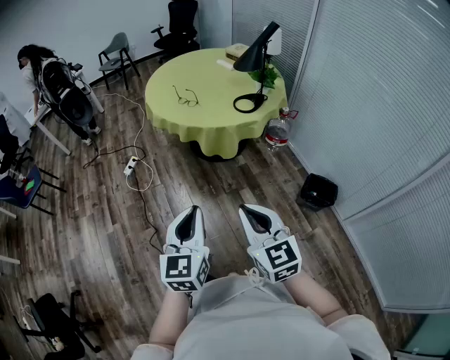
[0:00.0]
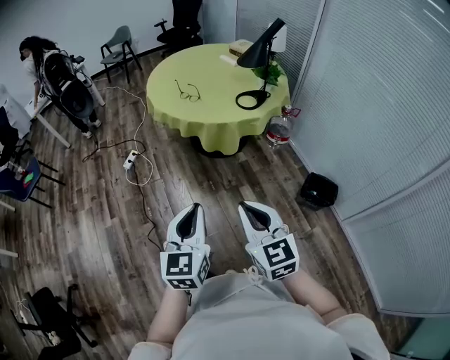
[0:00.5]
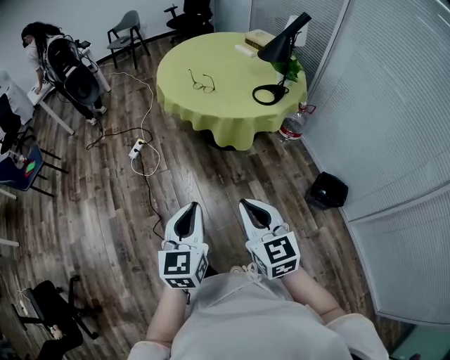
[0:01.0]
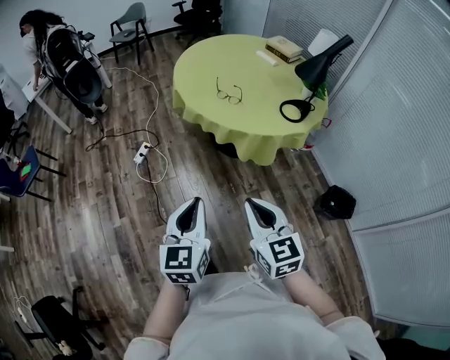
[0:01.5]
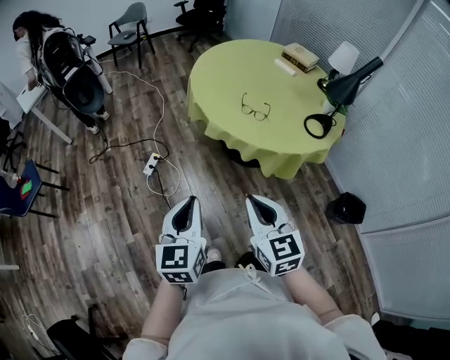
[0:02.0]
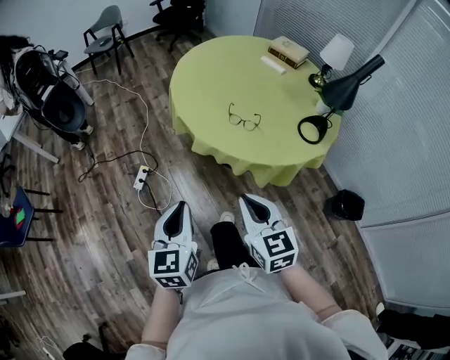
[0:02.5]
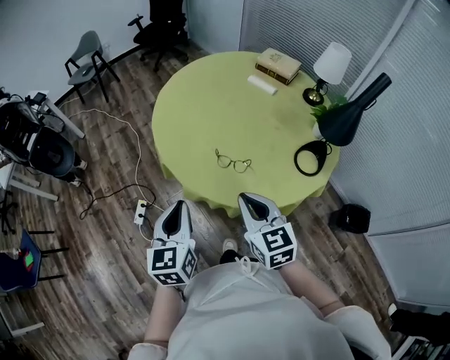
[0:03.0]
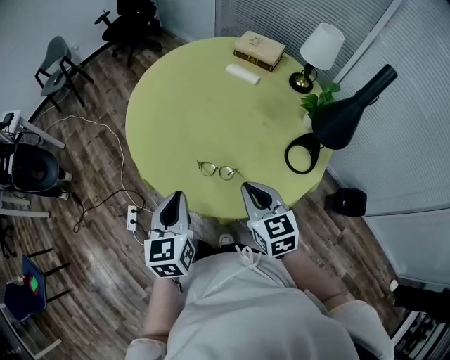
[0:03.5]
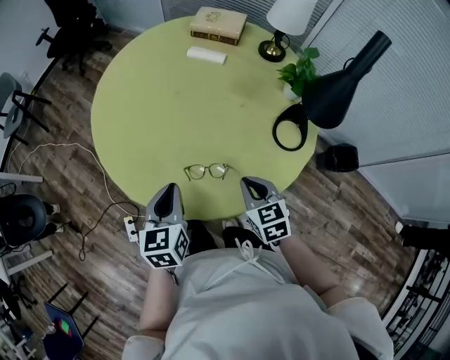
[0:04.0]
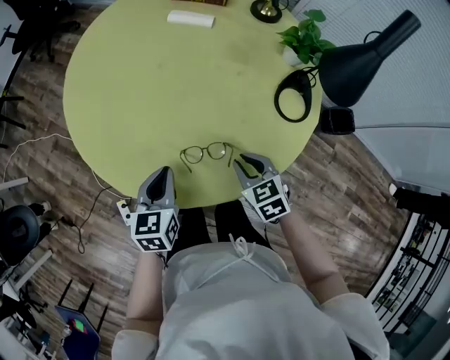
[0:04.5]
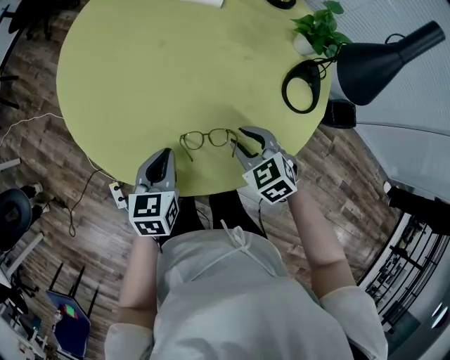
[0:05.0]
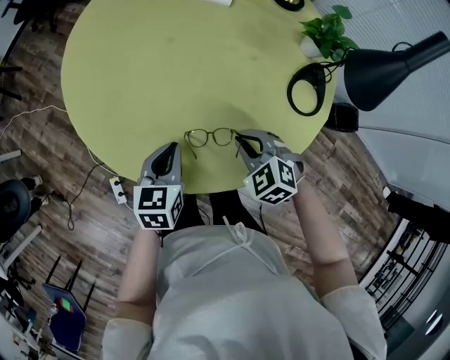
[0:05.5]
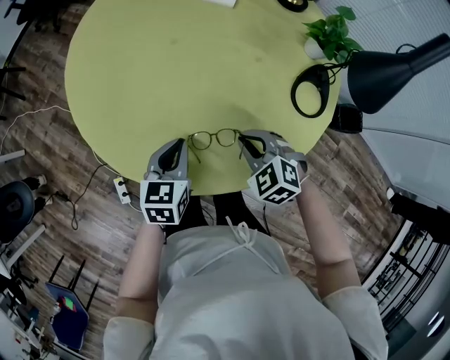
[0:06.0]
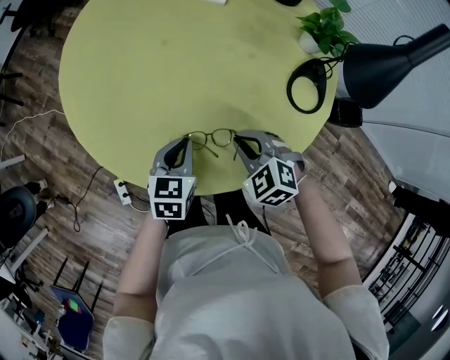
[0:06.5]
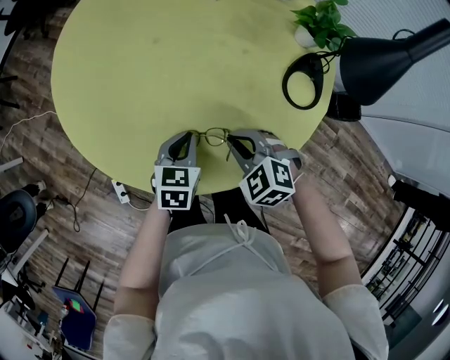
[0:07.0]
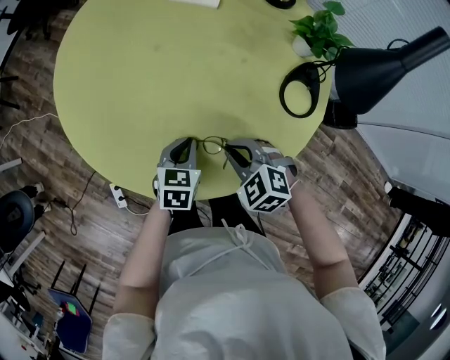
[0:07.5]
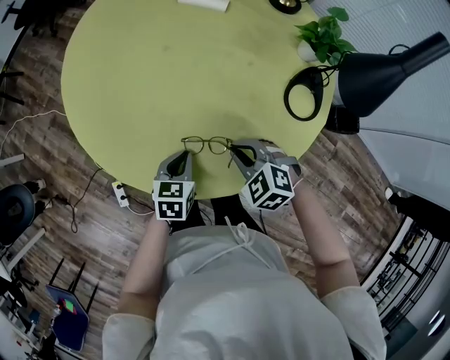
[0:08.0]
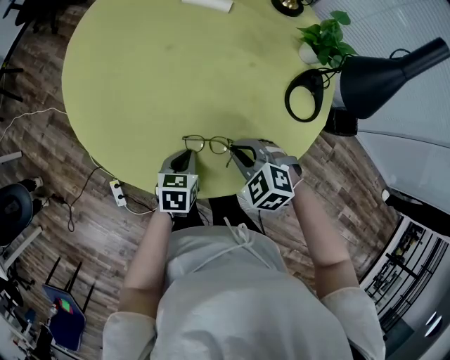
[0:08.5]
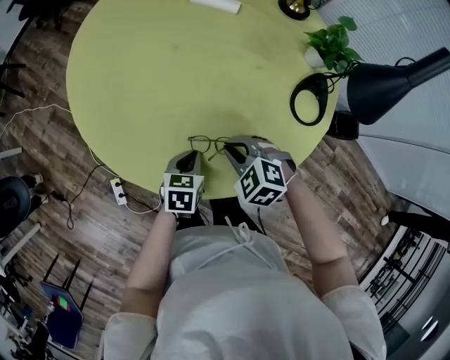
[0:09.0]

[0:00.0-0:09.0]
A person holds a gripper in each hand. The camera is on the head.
0:00.0 to 0:02.0: The pair of grippers is taken forward and to the left, approximately 50 cm.
0:02.0 to 0:04.5: The two grippers travel together, some 60 cm. The right gripper tips its fingers downward by roughly 30 degrees; the left gripper turns by roughly 40 degrees.
0:04.5 to 0:07.0: The left gripper moves downward and to the right, about 10 cm. The right gripper swivels roughly 40 degrees.
0:07.0 to 0:09.0: The left gripper shifts by about 5 cm.

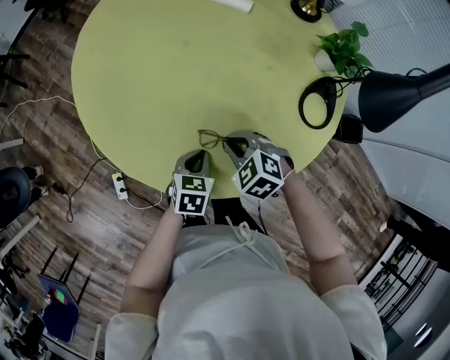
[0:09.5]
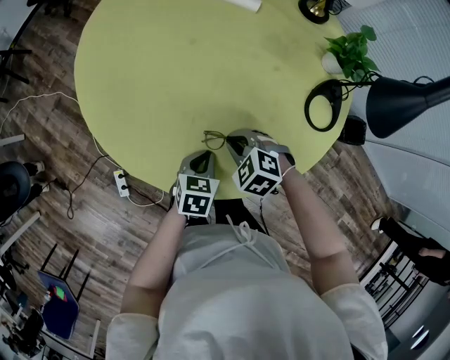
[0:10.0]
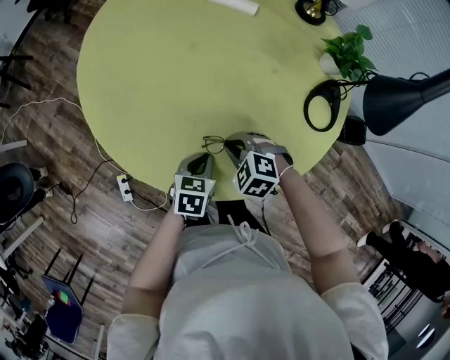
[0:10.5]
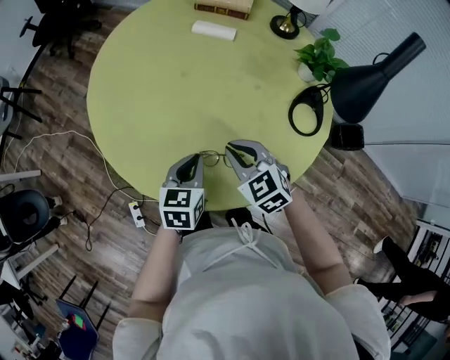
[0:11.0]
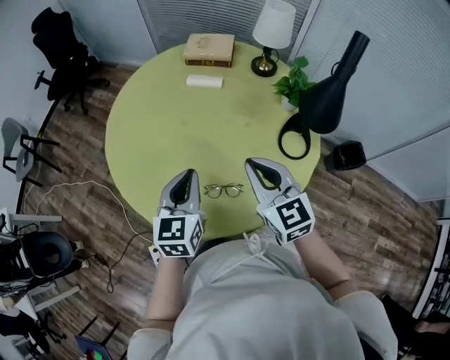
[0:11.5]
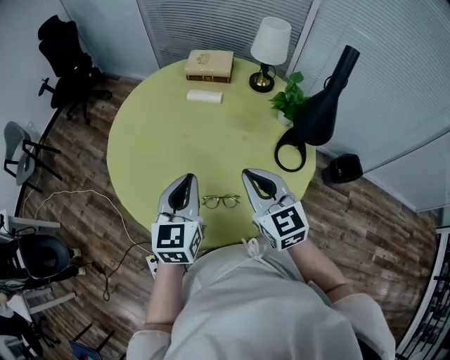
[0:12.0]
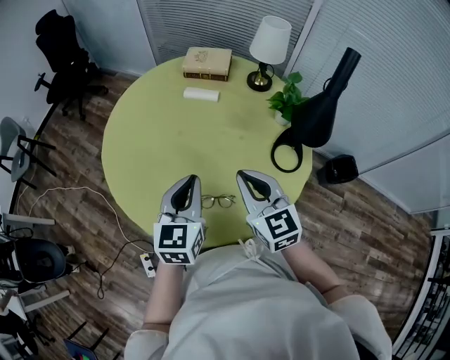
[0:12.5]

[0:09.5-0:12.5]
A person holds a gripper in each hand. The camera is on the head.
0:09.5 to 0:11.0: Both grippers move upward, approximately 10 cm. The right gripper changes its angle by approximately 30 degrees.
0:11.0 to 0:12.5: The two grippers go approximately 20 cm upward. The right gripper changes its angle by roughly 30 degrees. The left gripper swivels about 20 degrees.

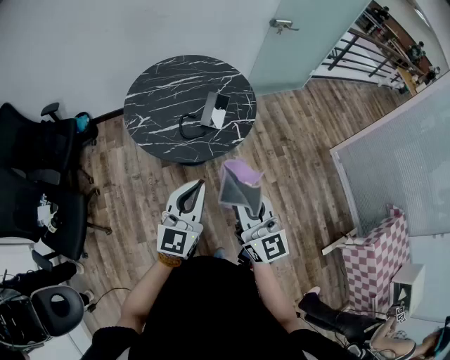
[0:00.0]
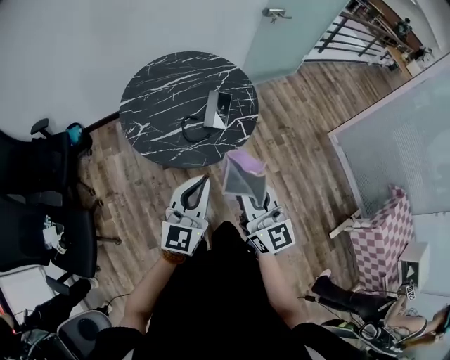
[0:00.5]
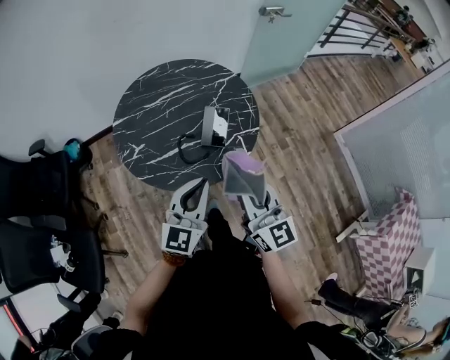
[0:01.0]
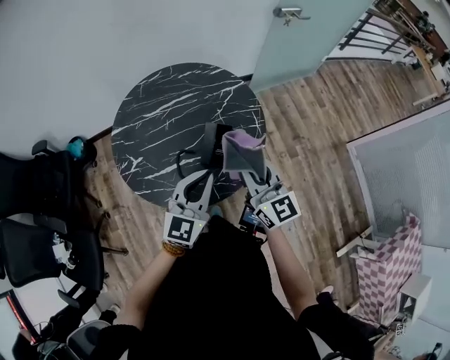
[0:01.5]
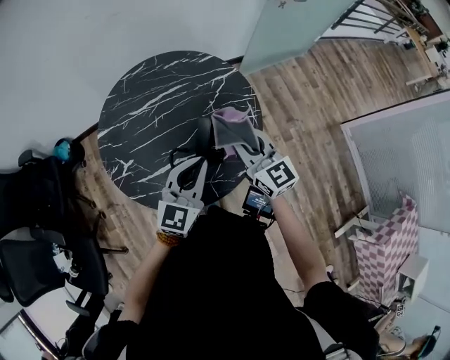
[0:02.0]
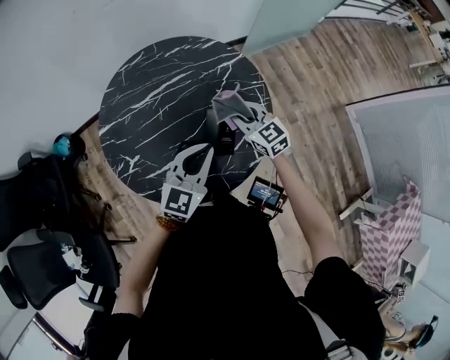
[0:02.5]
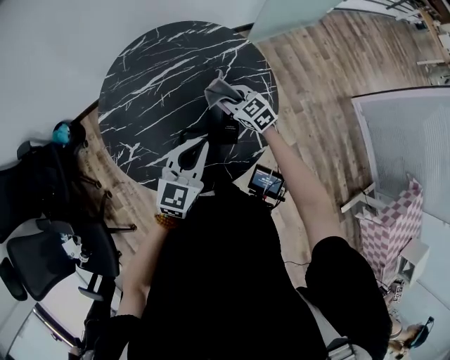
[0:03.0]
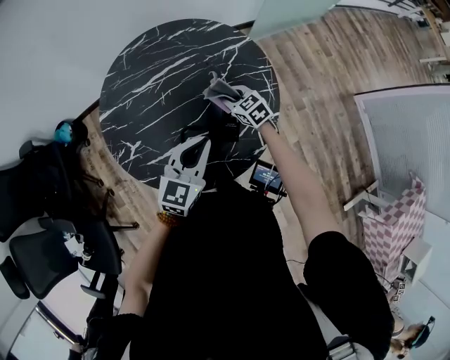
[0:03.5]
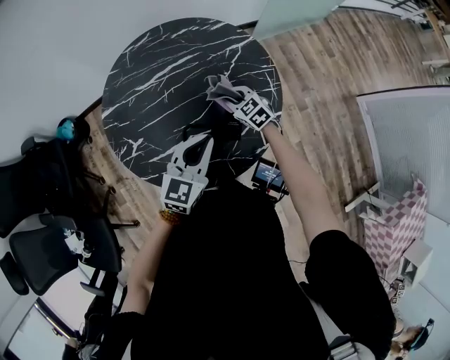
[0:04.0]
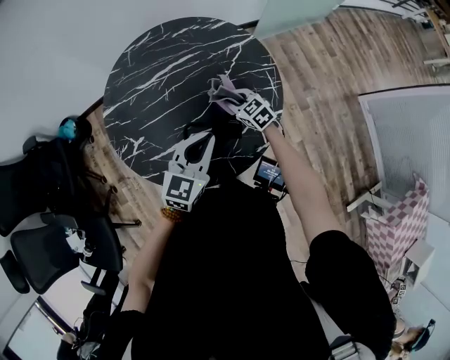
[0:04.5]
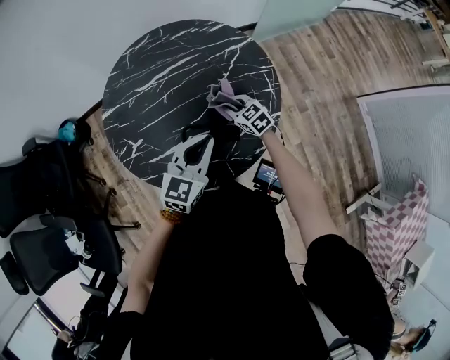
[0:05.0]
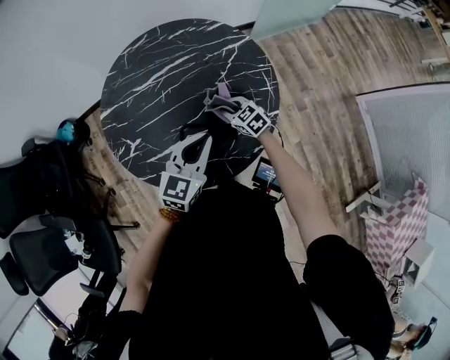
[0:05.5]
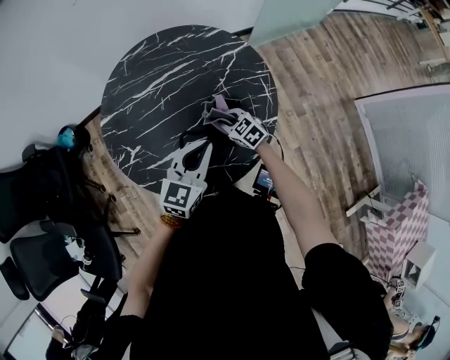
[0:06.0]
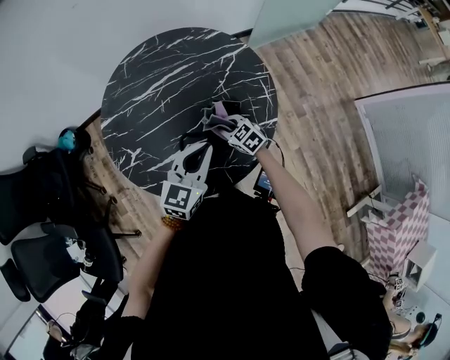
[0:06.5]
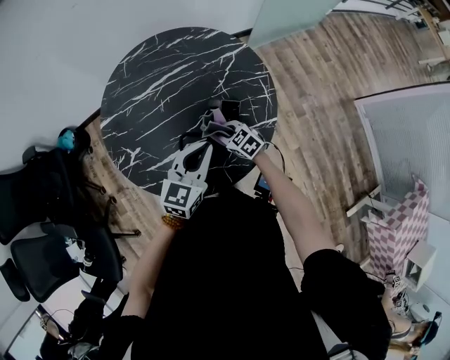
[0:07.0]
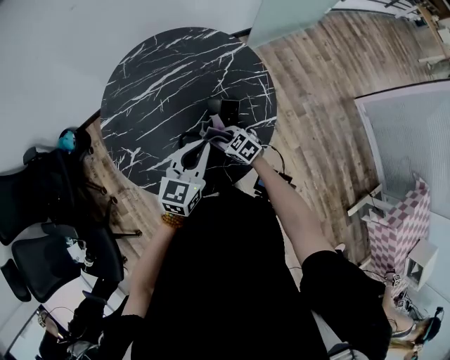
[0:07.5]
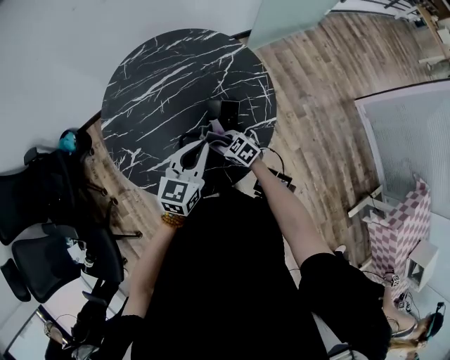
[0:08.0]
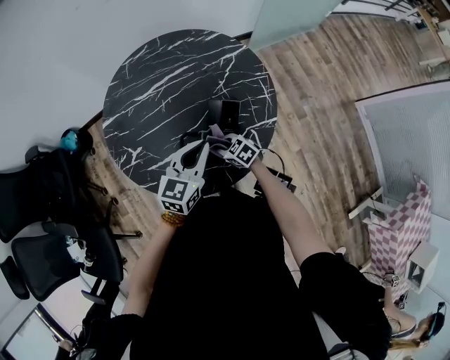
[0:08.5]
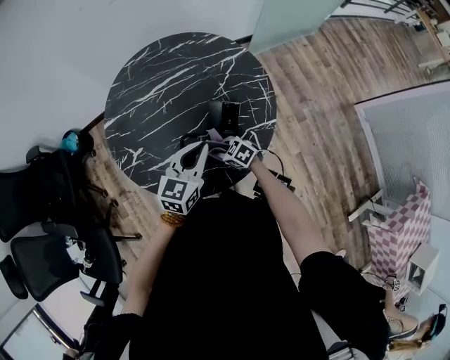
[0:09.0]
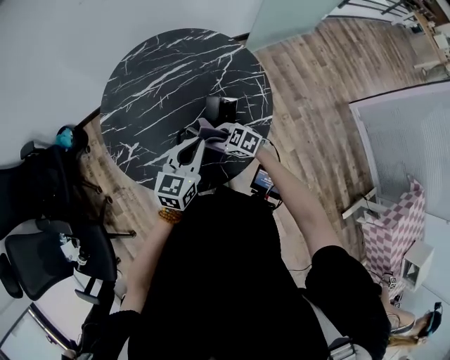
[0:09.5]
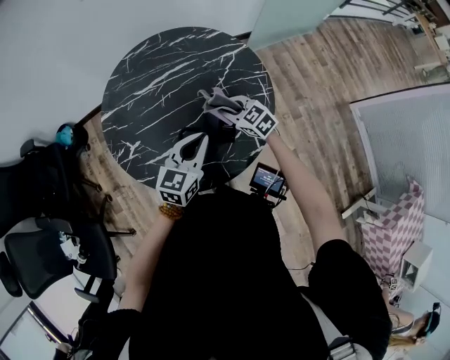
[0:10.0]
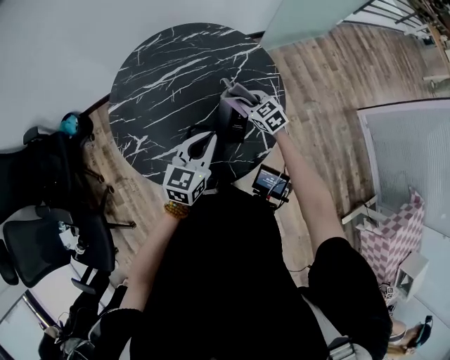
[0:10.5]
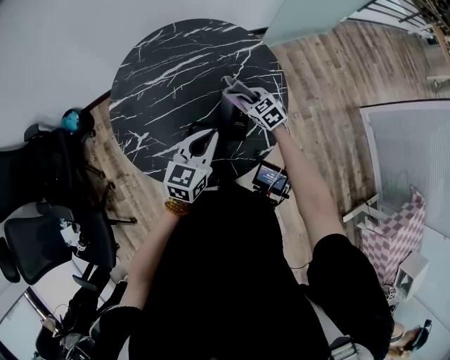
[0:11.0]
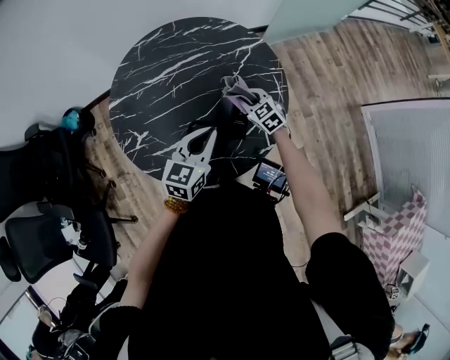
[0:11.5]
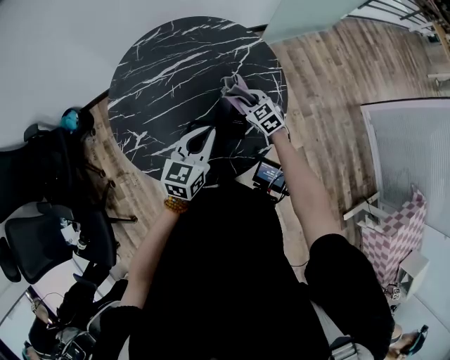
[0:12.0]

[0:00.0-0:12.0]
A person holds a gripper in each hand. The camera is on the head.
0:00.0 to 0:02.0: Both grippers travel together forward, about 40 cm.
0:02.0 to 0:04.0: The right gripper is displaced downward and forward by some 30 cm, and points its fingers some 30 degrees further downward. Meanwhile the left gripper moves downward, approximately 5 cm.
0:04.0 to 0:06.0: The right gripper is displaced backward by about 5 cm.
0:06.0 to 0:08.0: The right gripper moves backward, approximately 5 cm.
0:08.0 to 0:10.0: The right gripper is displaced upward and forward by roughly 15 cm.
0:10.0 to 0:12.0: The right gripper moves downward, about 5 cm.

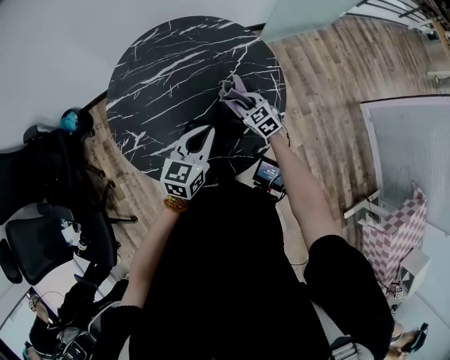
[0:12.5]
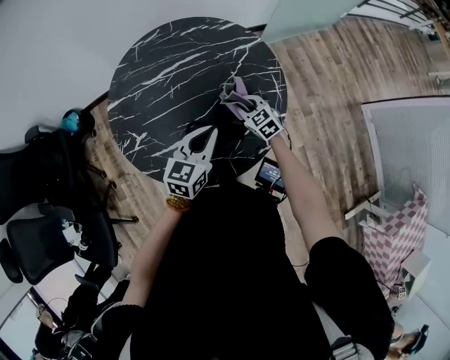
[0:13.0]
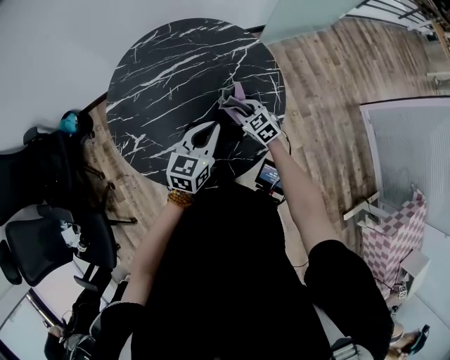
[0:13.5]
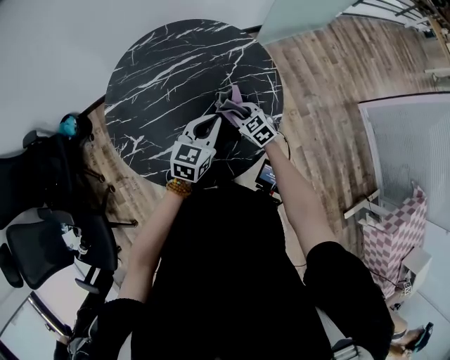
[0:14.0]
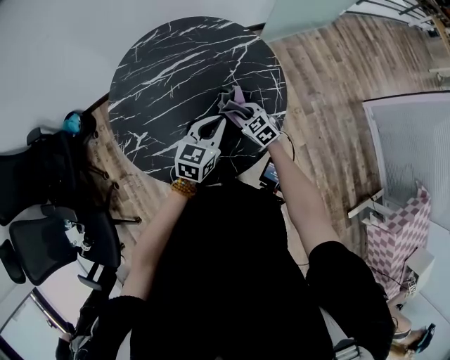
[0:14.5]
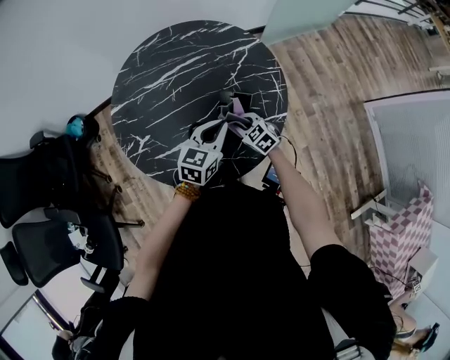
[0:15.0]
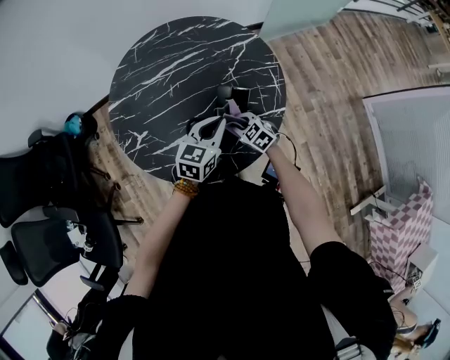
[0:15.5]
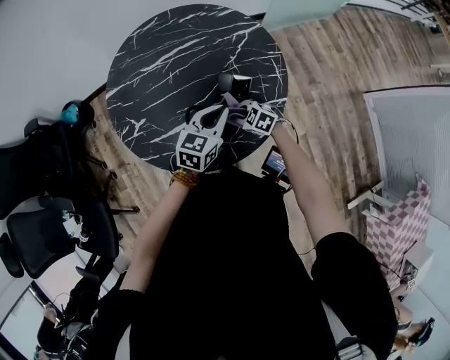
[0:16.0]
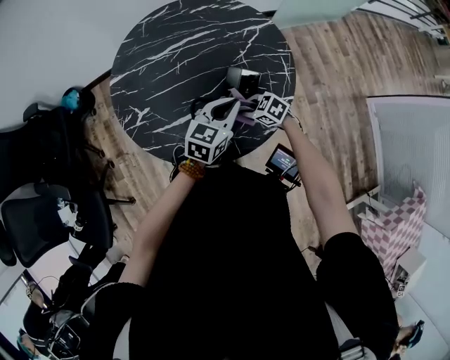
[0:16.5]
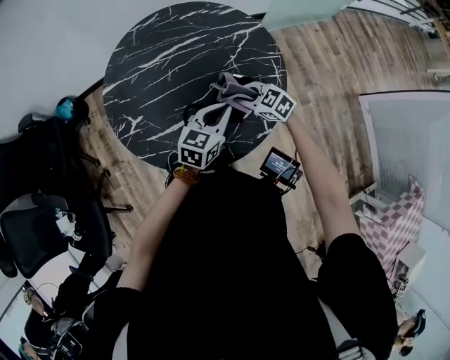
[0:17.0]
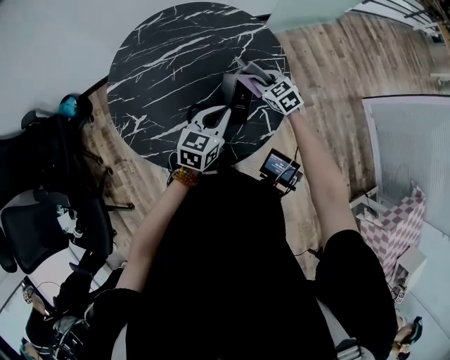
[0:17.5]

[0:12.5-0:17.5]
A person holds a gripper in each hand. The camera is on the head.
0:12.5 to 0:15.0: The right gripper is displaced backward by approximately 5 cm; the left gripper ends up about 5 cm from where it was.
0:15.0 to 0:17.5: The right gripper changes place by some 15 cm.
